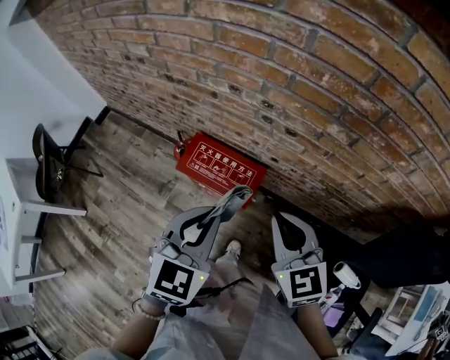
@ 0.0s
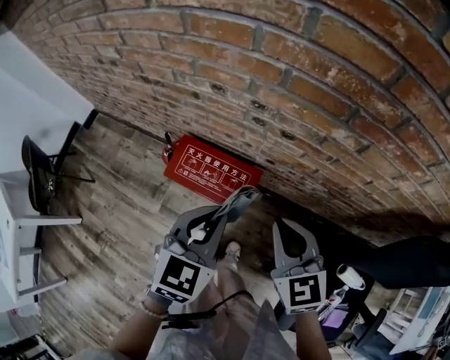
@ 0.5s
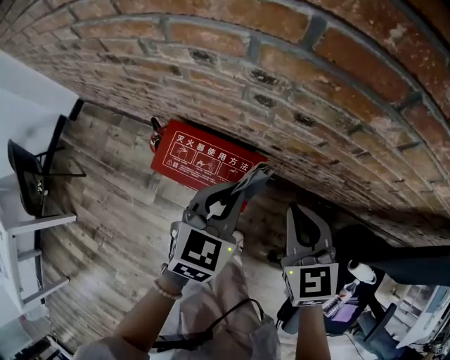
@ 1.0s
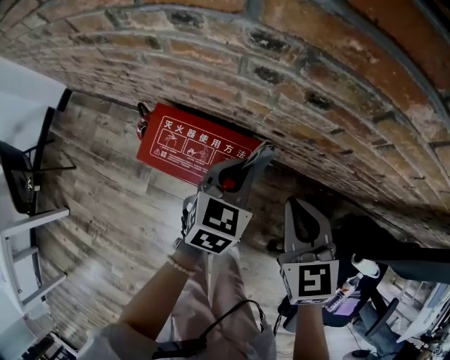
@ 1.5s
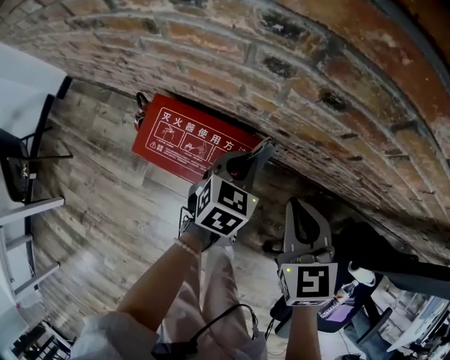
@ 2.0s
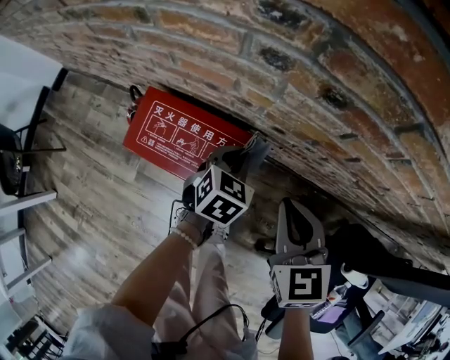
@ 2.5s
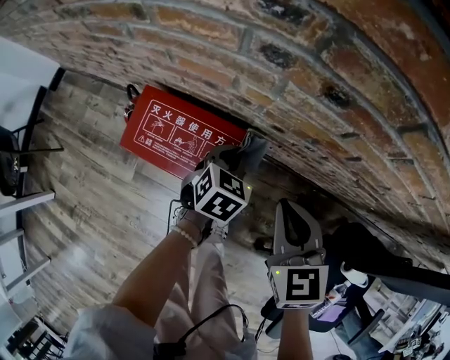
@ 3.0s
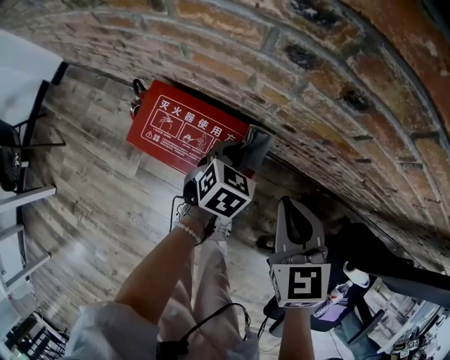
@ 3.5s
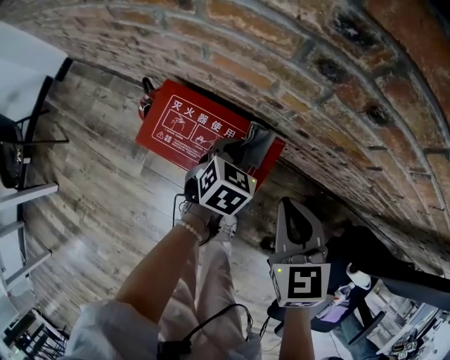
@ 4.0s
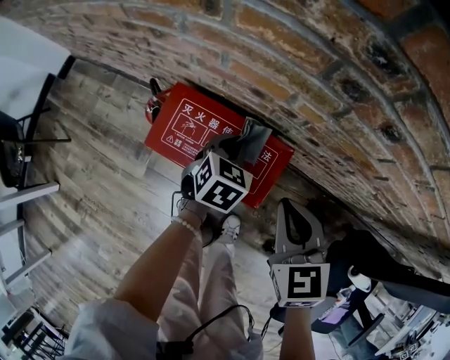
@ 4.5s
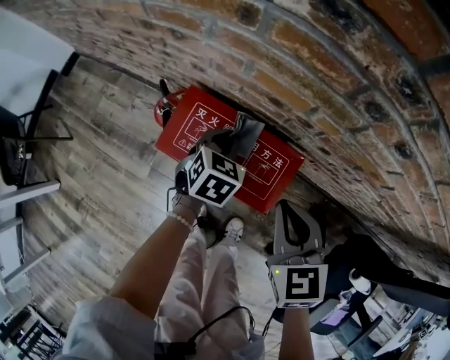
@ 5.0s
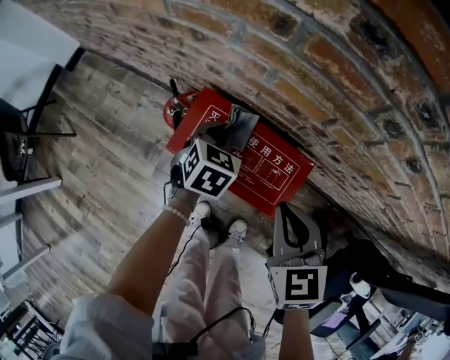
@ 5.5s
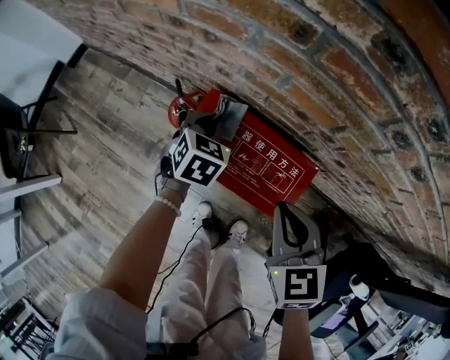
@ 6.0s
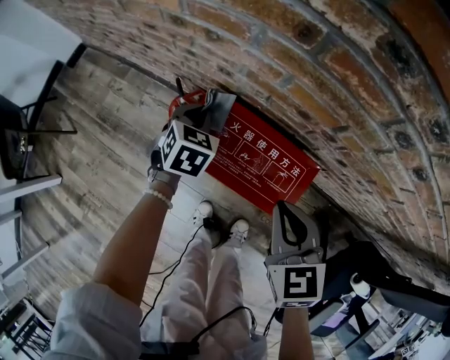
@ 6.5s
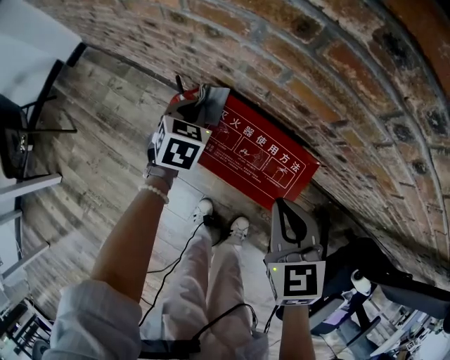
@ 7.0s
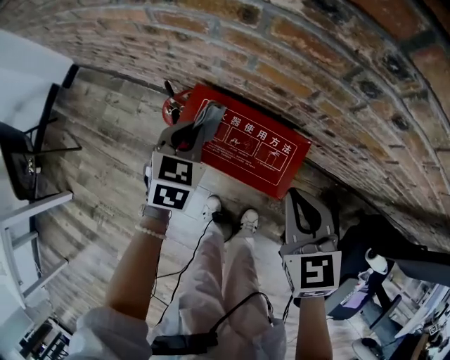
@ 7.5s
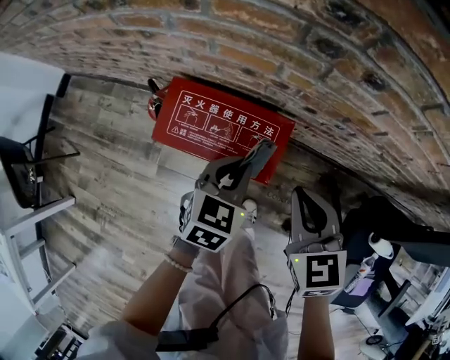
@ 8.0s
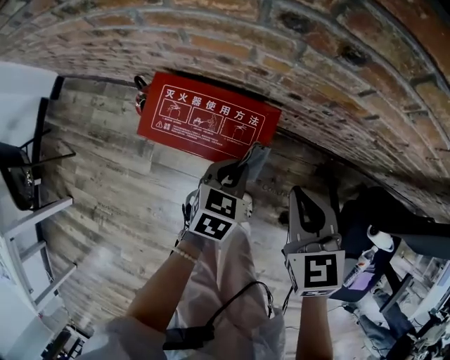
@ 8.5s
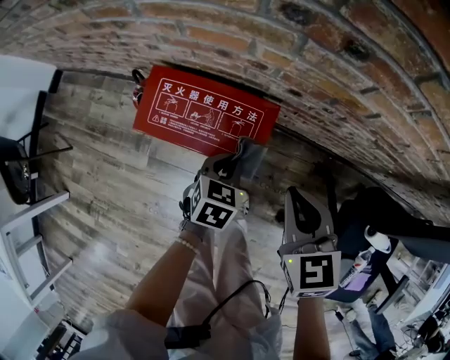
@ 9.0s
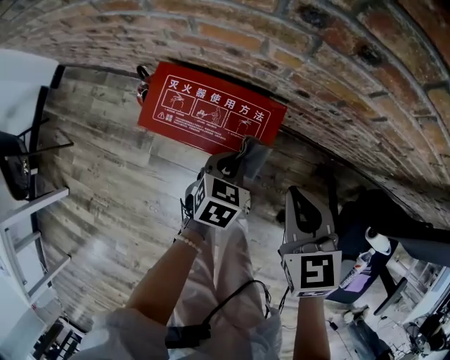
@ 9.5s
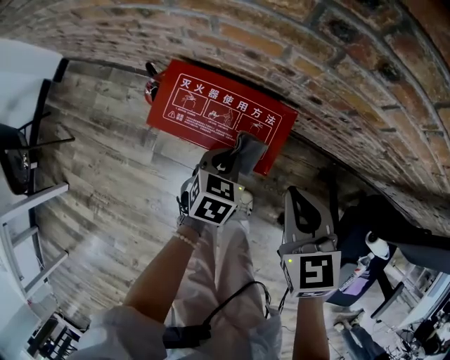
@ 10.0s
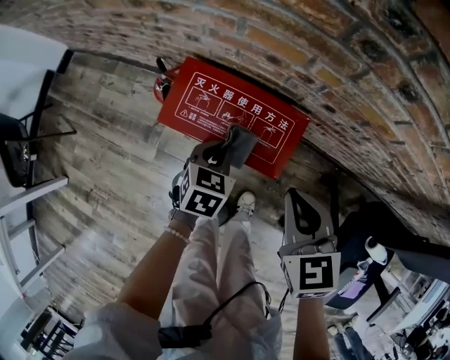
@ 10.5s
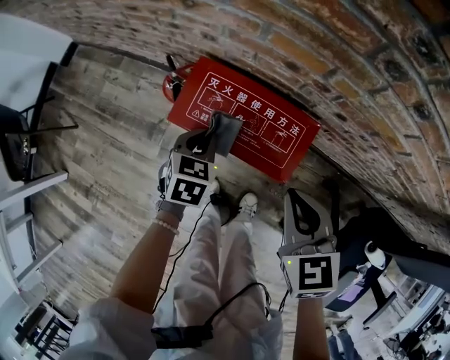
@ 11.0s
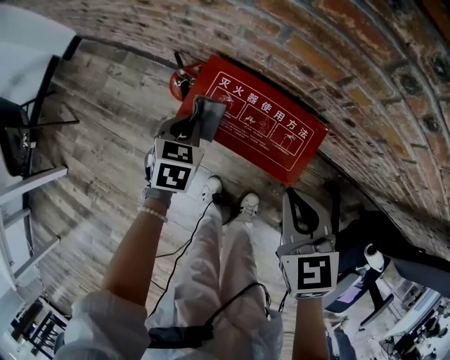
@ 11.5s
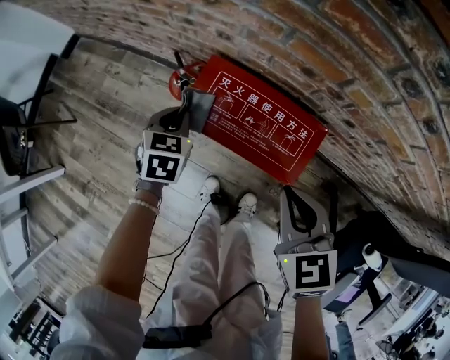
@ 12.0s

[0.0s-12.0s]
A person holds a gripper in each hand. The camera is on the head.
0.0s to 2.0s: The left gripper is displaced downward and forward by roughly 40 cm, and rotates approximately 20 degrees. The right gripper moves downward and forward, approximately 25 cm.
2.0s to 4.0s: The left gripper is displaced downward and to the left by approximately 10 cm. Meanwhile the right gripper ends up some 5 cm from where it was.
4.0s to 6.0s: The left gripper travels to the left by some 20 cm, while the right gripper moves to the left, about 10 cm.
6.0s to 8.0s: The right gripper is displaced to the right and backward by approximately 10 cm. Meanwhile the left gripper is displaced backward, to the right and upward by about 25 cm, and rotates about 20 degrees.
8.0s to 10.0s: The left gripper travels downward by approximately 10 cm.
10.0s to 12.0s: The right gripper heads to the left, covering roughly 10 cm. The left gripper goes some 25 cm to the left and forward.

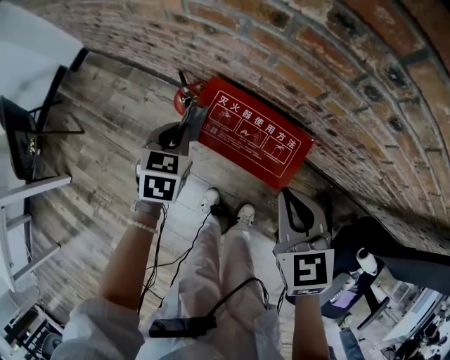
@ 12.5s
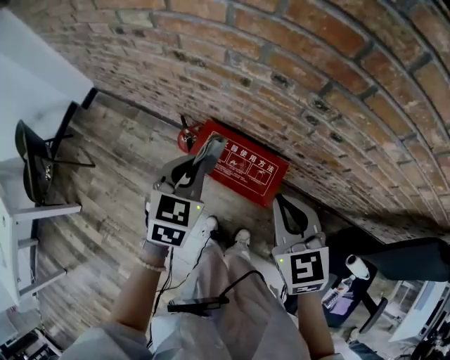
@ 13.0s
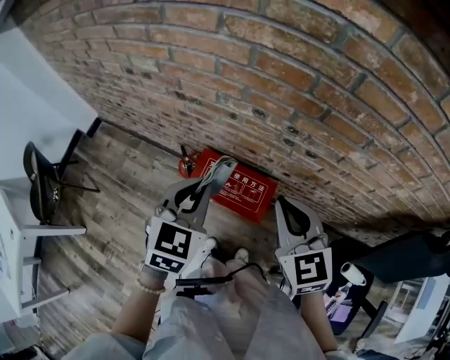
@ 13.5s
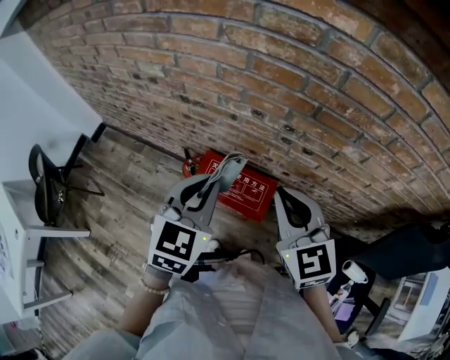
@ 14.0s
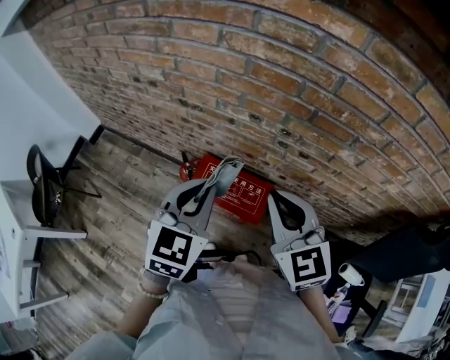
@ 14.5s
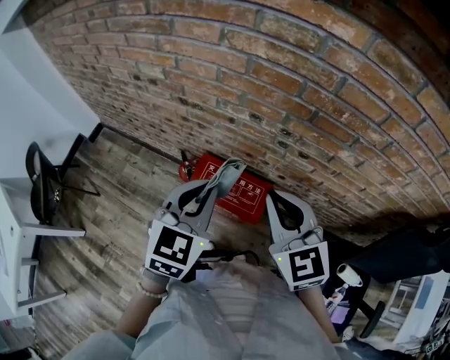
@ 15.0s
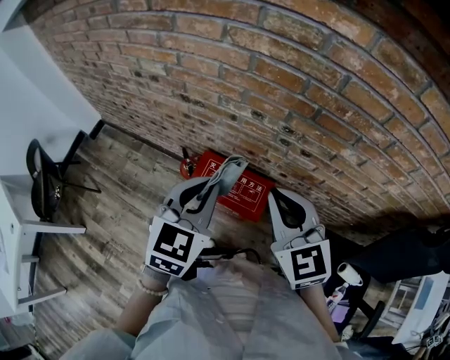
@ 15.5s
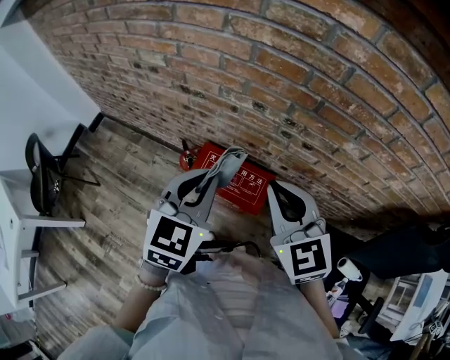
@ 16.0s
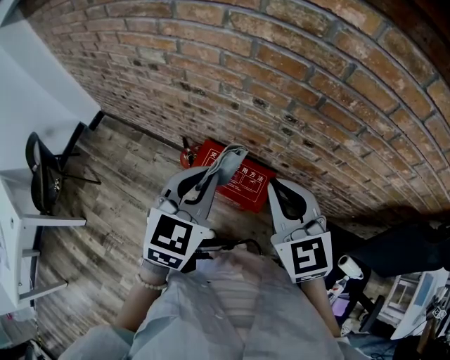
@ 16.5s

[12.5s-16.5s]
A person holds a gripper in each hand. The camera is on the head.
12.5s to 14.5s: The grippers both shift upward by approximately 35 cm. The right gripper changes its angle by some 20 degrees. The left gripper changes its angle by about 30 degrees.
14.5s to 16.5s: Both grippers stay put.

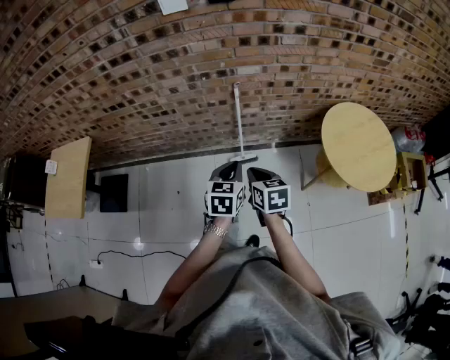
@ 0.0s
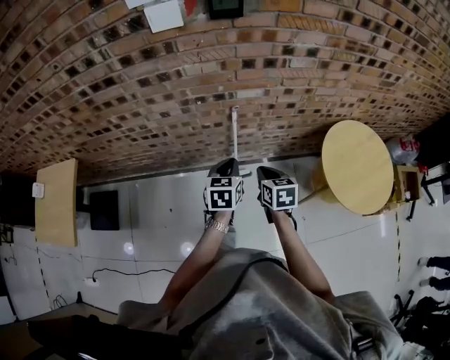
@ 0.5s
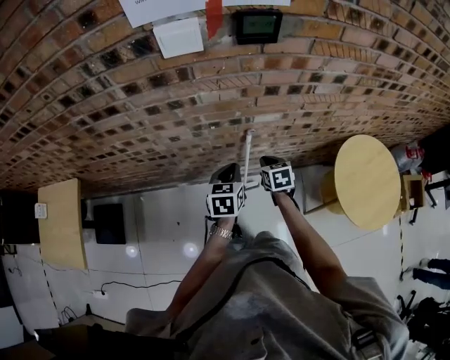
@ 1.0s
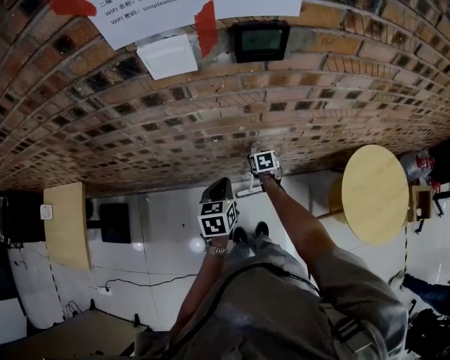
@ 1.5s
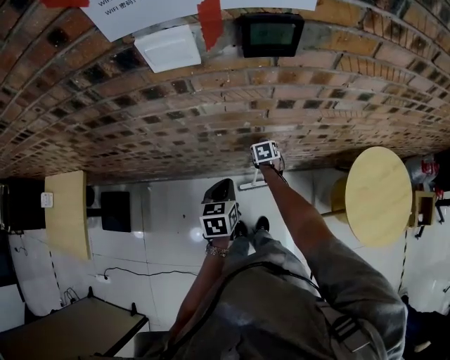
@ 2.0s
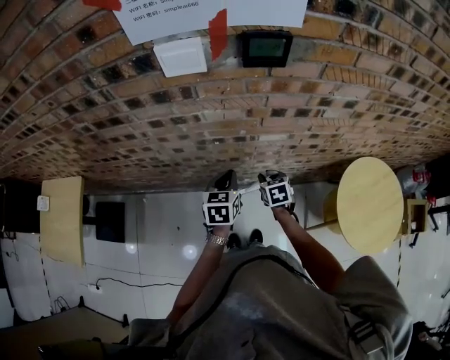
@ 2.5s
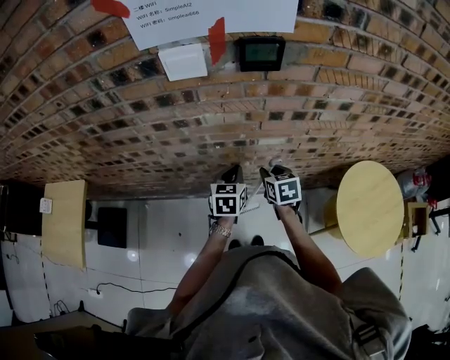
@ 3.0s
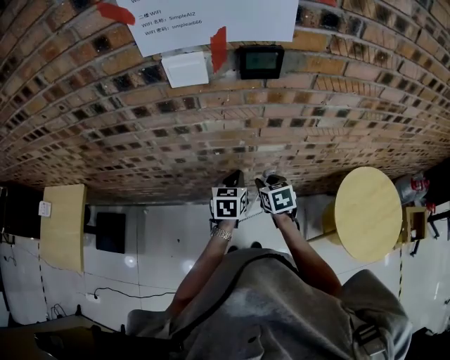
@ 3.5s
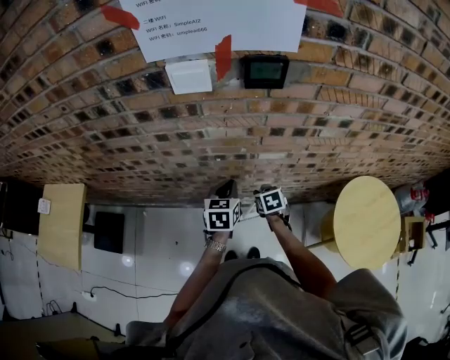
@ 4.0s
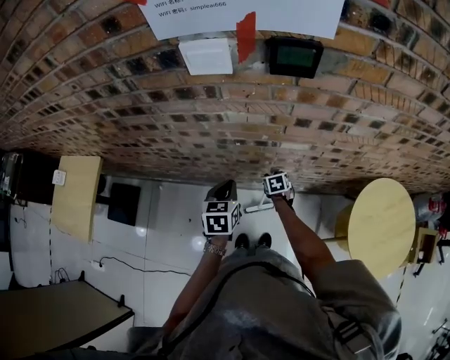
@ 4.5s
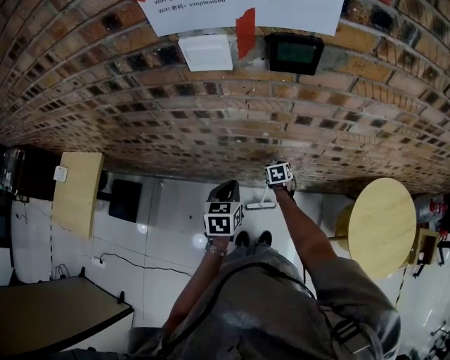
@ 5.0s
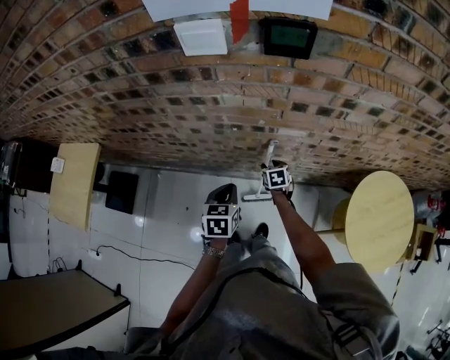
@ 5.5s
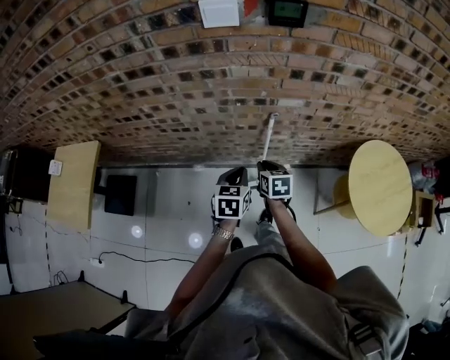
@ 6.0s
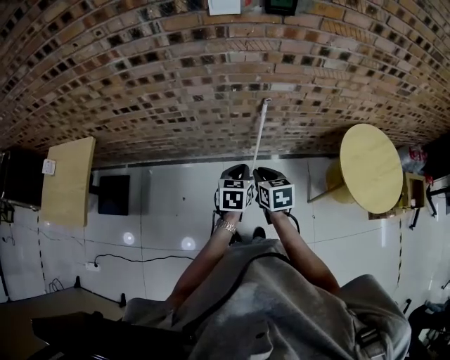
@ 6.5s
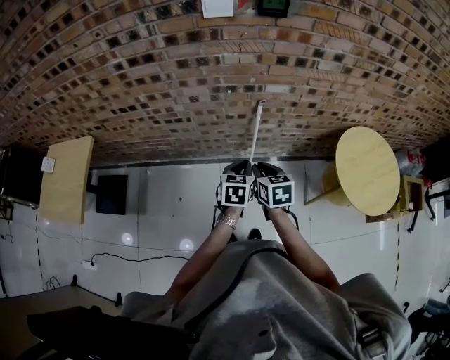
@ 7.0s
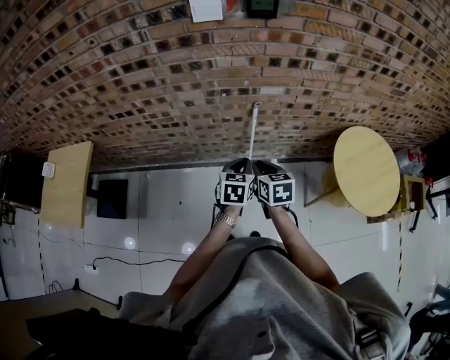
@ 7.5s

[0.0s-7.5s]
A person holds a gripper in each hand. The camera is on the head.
0.0s to 2.0s: The left gripper shifts approximately 30 cm forward. Meanwhile the right gripper heads forward and downward, covering some 60 cm, changes its angle by some 30 degrees, and opens its fingers.
2.0s to 4.0s: The right gripper is displaced backward and upward by some 15 cm; the left gripper shifts by roughly 5 cm.
4.0s to 5.5s: The left gripper heads backward, covering approximately 10 cm. Meanwhile the right gripper travels downward by about 10 cm.
5.5s to 7.5s: The left gripper goes about 15 cm backward; the right gripper heads backward and upward, covering approximately 35 cm, and closes.

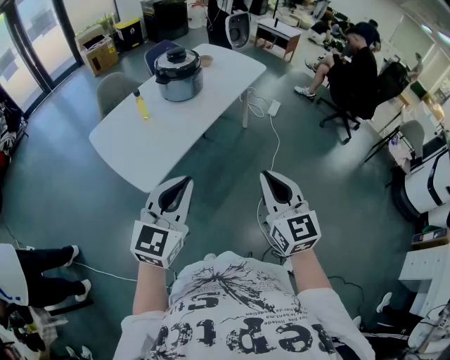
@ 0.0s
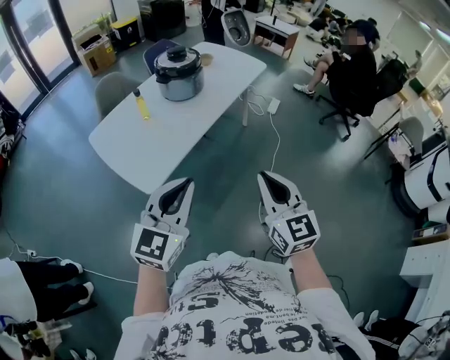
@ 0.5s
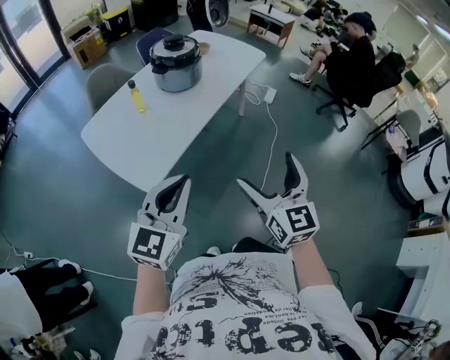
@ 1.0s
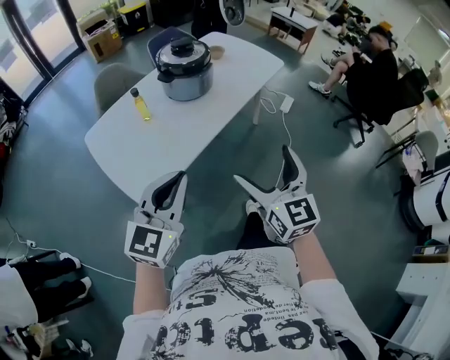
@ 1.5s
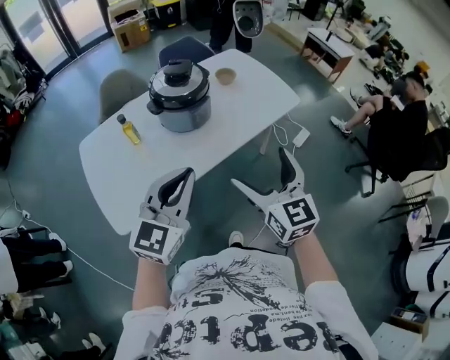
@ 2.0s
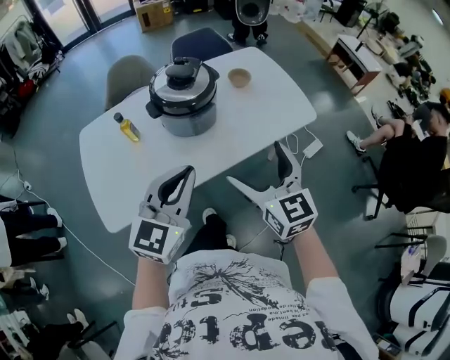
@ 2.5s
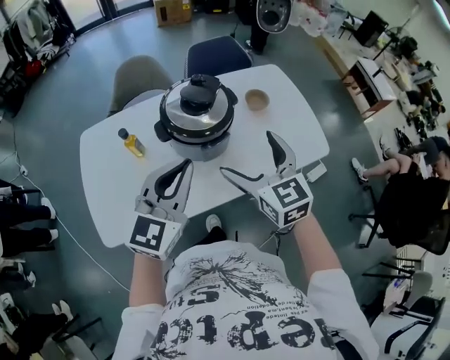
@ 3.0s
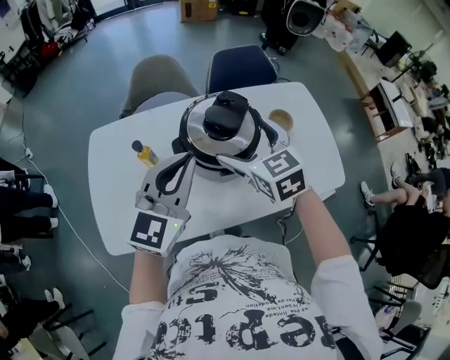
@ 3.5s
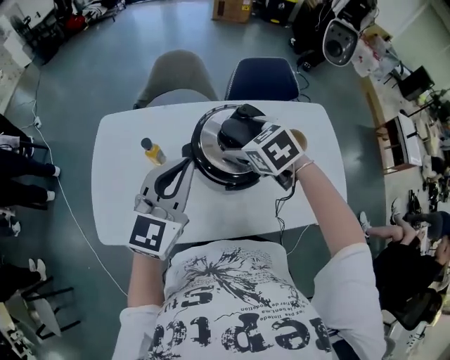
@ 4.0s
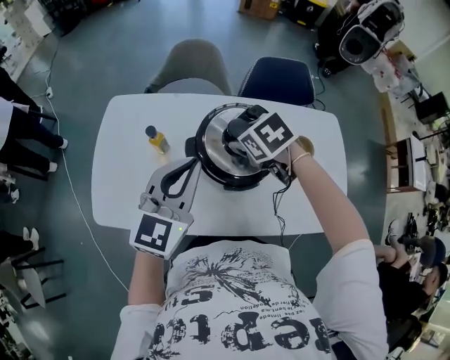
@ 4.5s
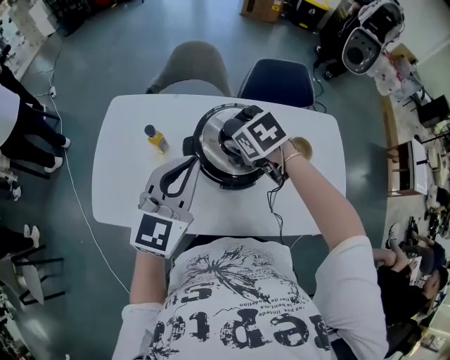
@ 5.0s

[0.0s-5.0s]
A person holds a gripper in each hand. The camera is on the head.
0.0s to 2.5s: Both grippers are carried approximately 60 cm. The left gripper rotates approximately 20 degrees; the right gripper turns by roughly 30 degrees, and opens up.
2.5s to 5.0s: The left gripper changes place by roughly 40 cm, and rotates approximately 30 degrees; the right gripper changes place by some 50 cm, tilts its fingers approximately 50 degrees downward, and closes its fingers.
